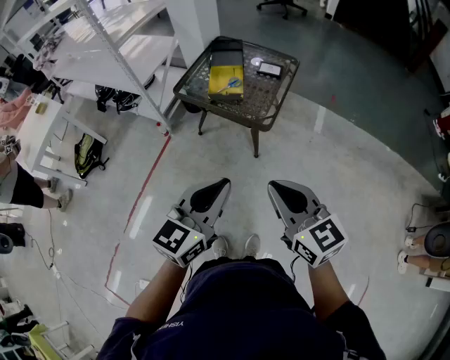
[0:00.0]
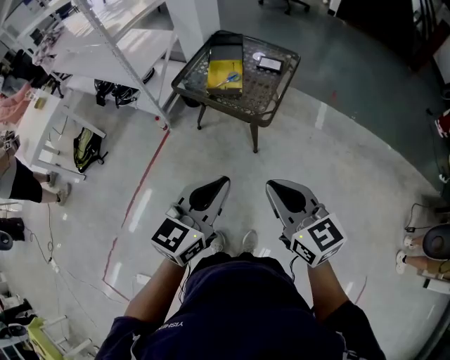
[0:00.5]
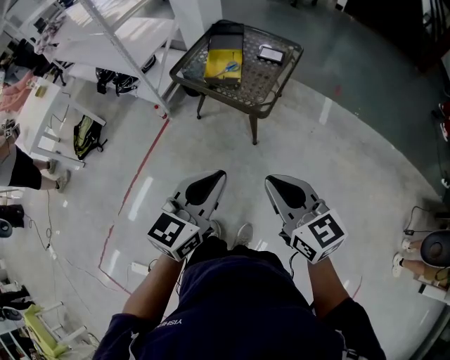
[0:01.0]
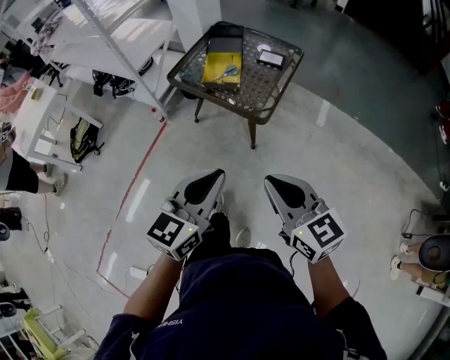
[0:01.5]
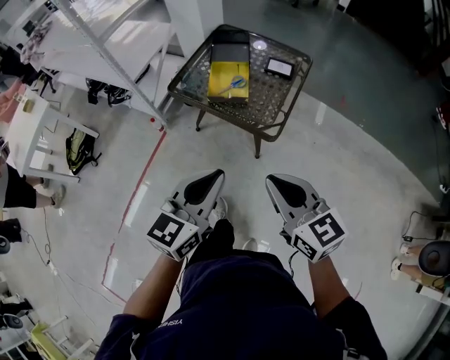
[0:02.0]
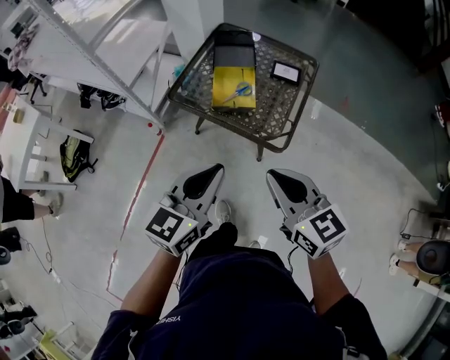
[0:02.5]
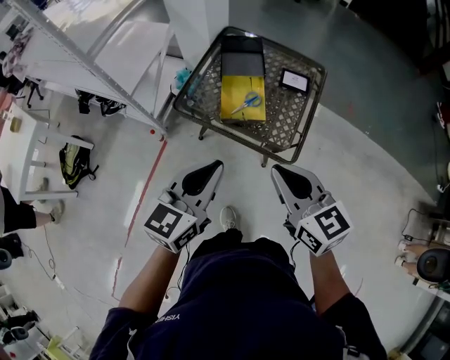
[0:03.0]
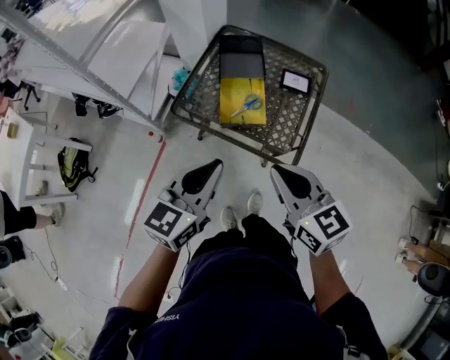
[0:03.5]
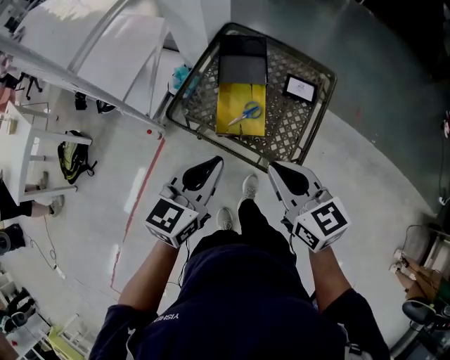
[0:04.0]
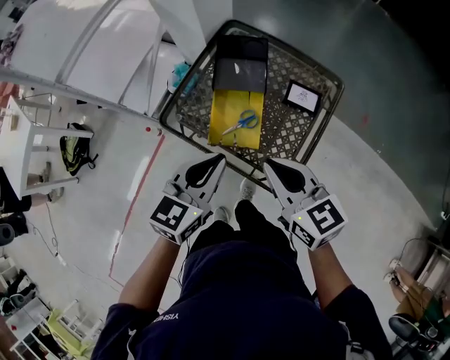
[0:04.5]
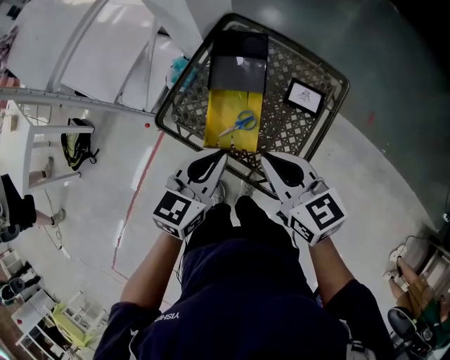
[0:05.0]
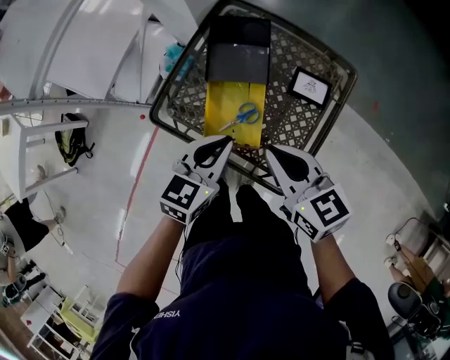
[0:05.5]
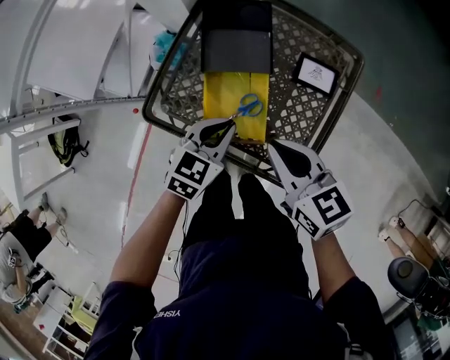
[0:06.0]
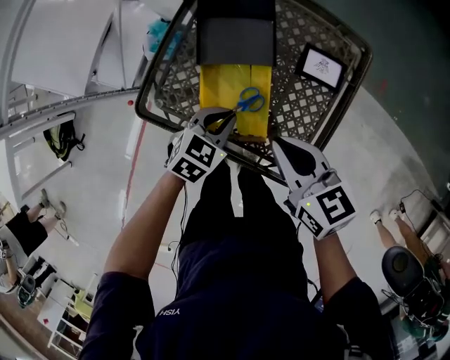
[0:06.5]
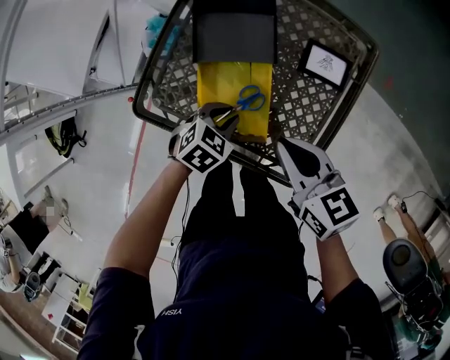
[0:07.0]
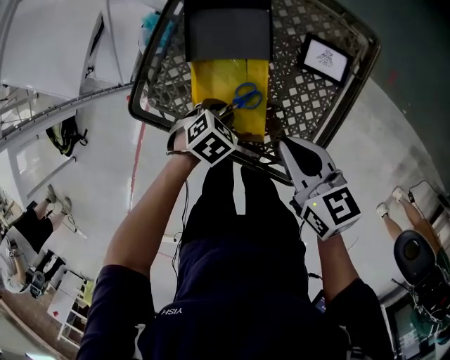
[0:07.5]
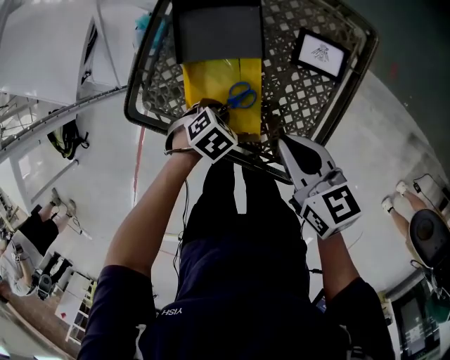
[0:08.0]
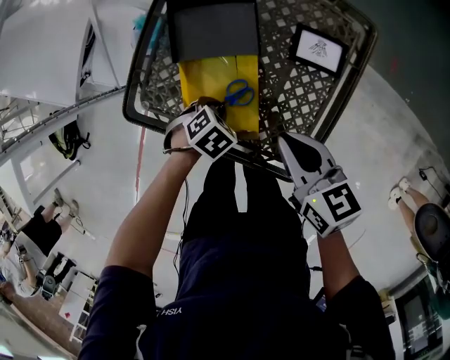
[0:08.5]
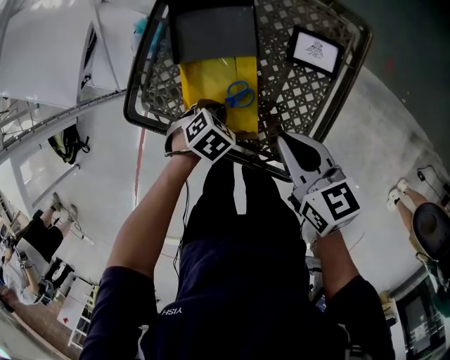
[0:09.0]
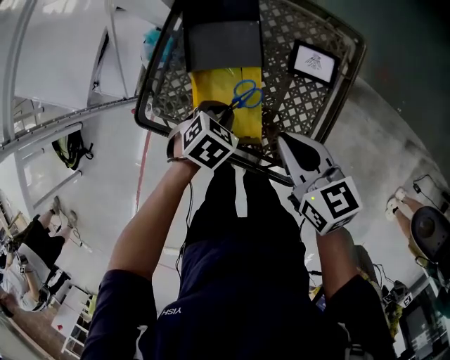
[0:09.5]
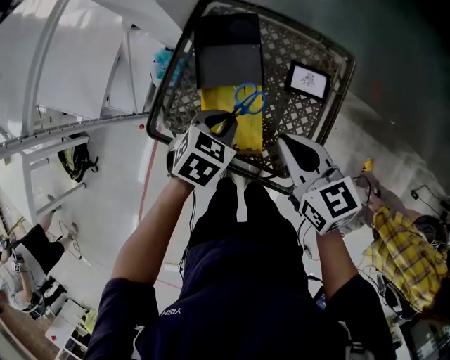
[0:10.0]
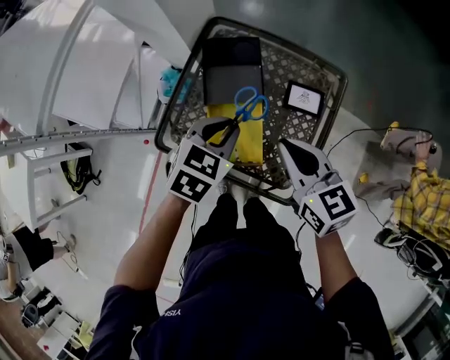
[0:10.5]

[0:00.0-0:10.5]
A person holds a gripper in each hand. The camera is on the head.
0:00.0 to 0:02.0: The two grippers go approximately 15 cm forward.
0:02.0 to 0:04.0: Both grippers move forward, roughly 30 cm.
0:04.0 to 0:06.5: The left gripper is displaced downward and forward by roughly 35 cm, and tilts its fingers some 30 degrees downward, while the right gripper shifts about 25 cm forward and downward.
0:06.5 to 0:08.5: The right gripper shifts by some 5 cm. The left gripper moves downward, about 10 cm, and angles its fingers downward, by some 30 degrees.
0:08.5 to 0:10.5: The right gripper shifts about 15 cm upward. Meanwhile the left gripper shifts about 30 cm upward, and angles its fingers upward, by about 30 degrees.

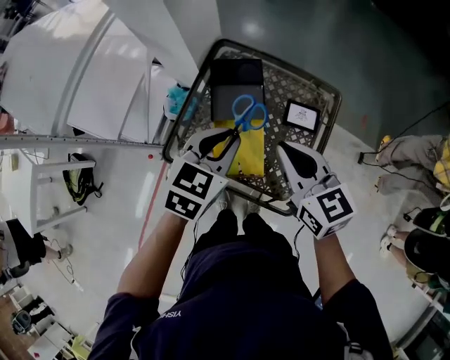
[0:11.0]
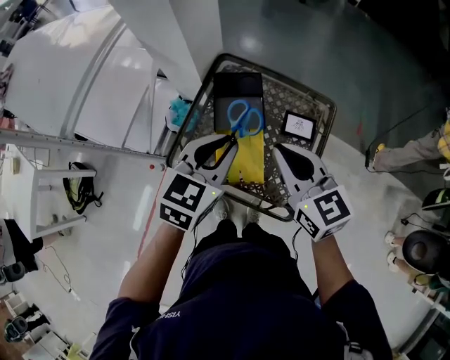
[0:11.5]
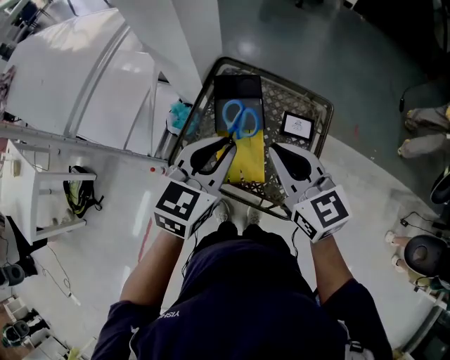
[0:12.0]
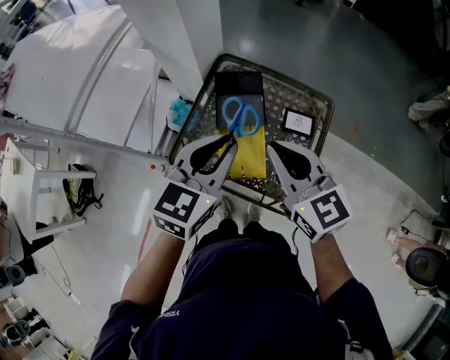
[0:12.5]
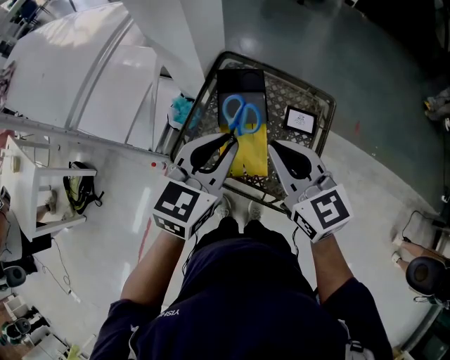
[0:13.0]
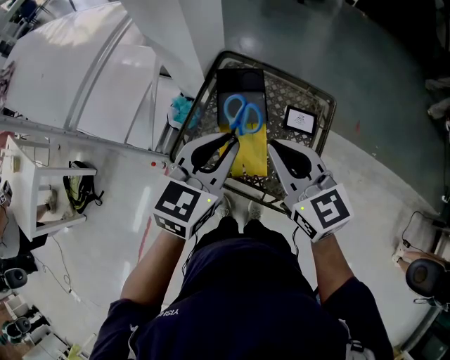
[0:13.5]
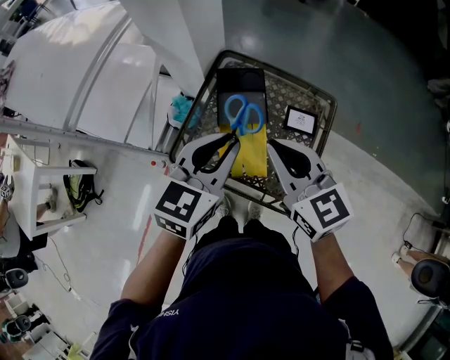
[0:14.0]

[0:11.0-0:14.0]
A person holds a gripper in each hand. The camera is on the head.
0:11.0 to 0:12.5: Both grippers travel together upward, roughly 10 cm.
0:12.5 to 0:14.0: The two grippers keep their place.

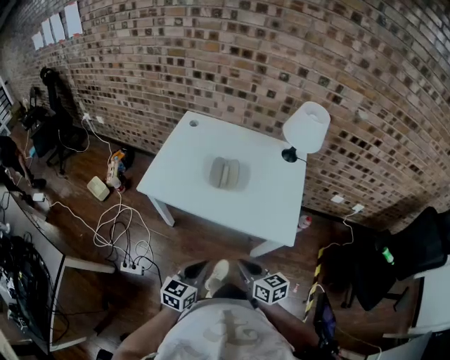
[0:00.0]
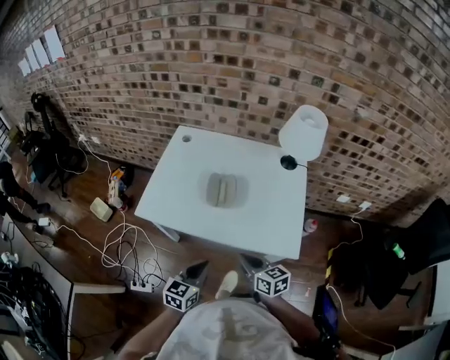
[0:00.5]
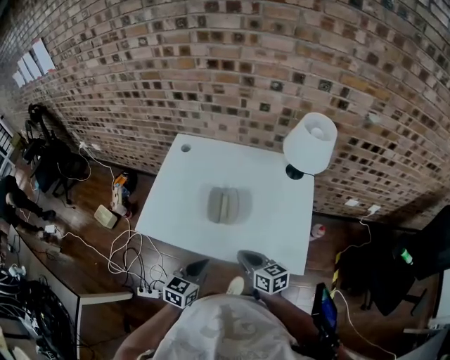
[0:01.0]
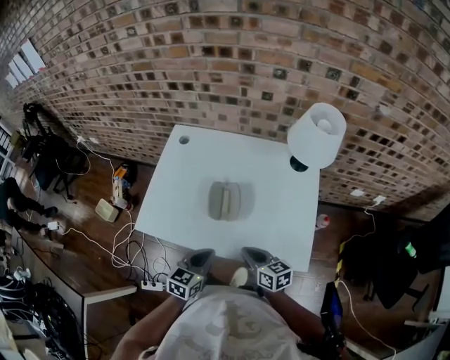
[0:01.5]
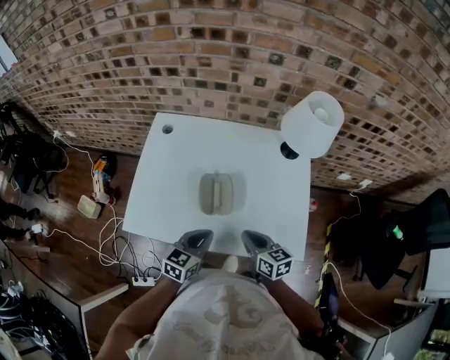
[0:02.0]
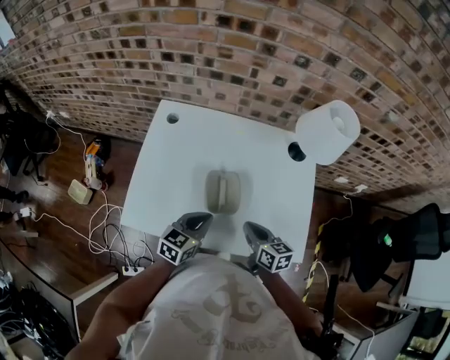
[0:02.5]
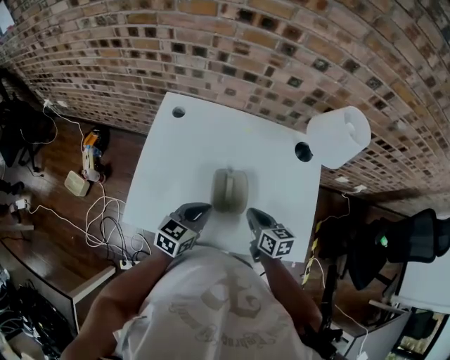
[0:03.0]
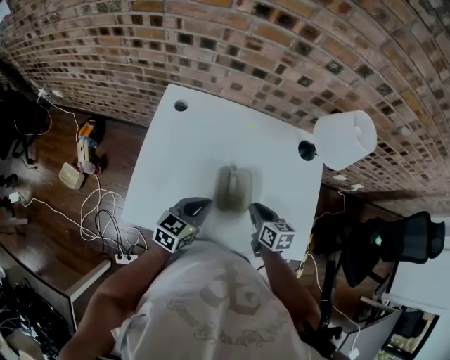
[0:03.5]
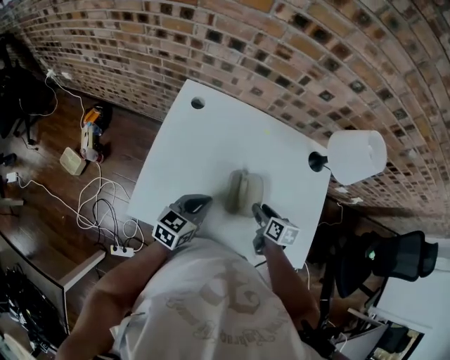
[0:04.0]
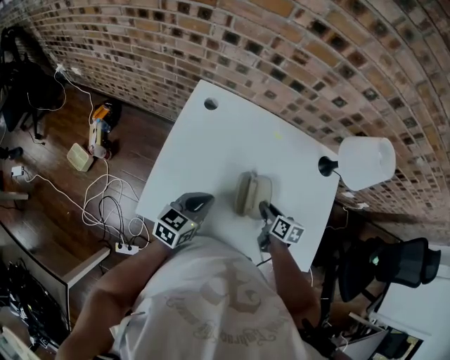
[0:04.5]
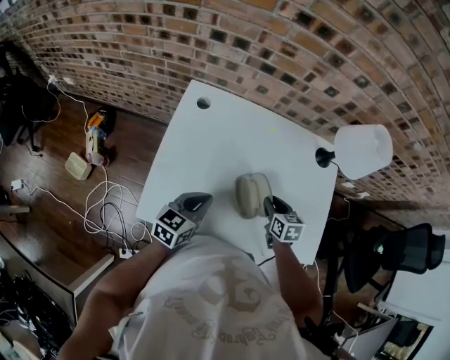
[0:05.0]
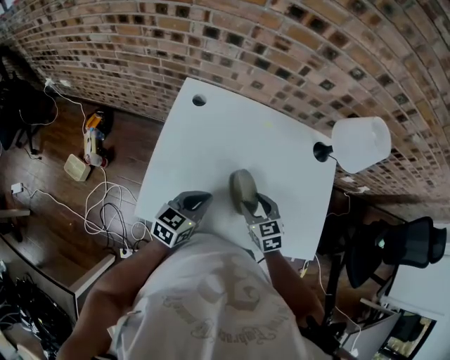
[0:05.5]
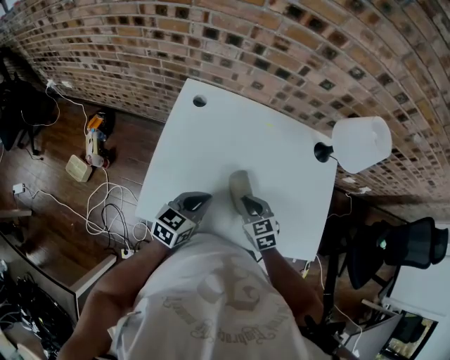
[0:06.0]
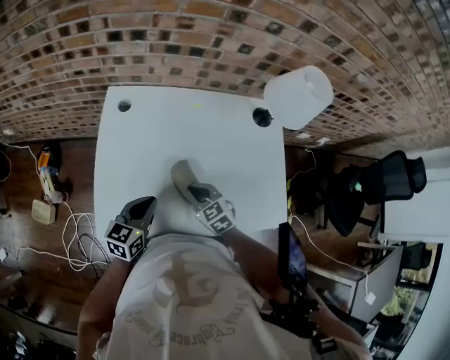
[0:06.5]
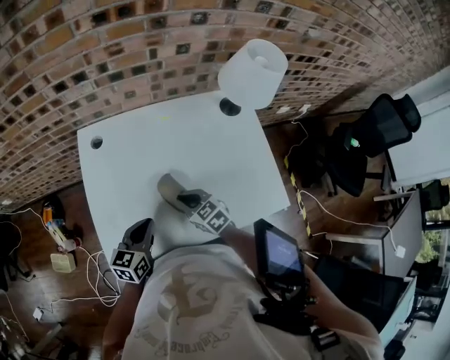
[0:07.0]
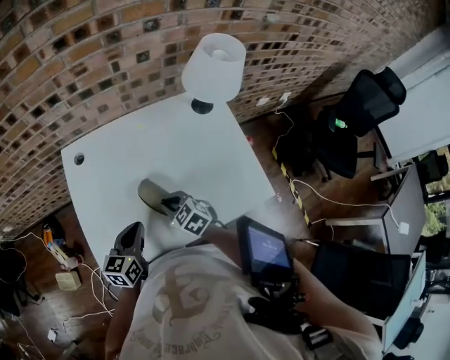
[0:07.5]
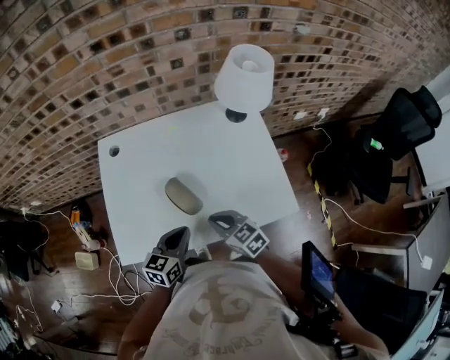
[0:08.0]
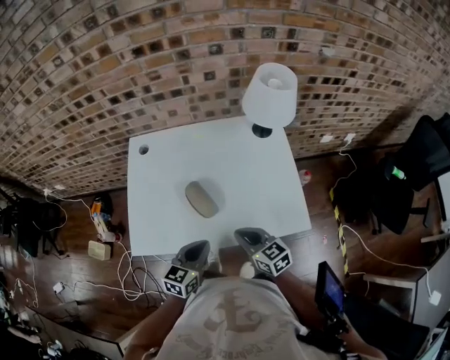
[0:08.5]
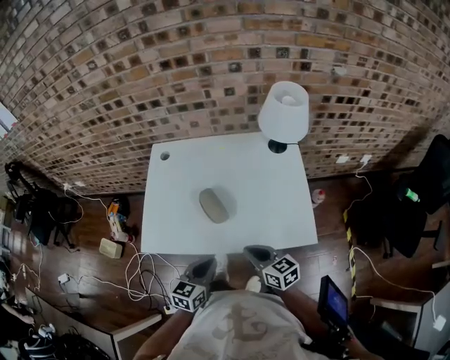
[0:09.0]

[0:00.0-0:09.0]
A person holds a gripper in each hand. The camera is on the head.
0:00.0 to 0:02.0: Both grippers move forward, some 25 cm.
0:02.0 to 0:04.5: The right gripper moves forward, downward and to the left, some 20 cm, swivels roughly 20 degrees, and opens. The left gripper travels to the left and forward by roughly 20 cm.
0:04.5 to 0:07.0: The right gripper heads to the left, covering approximately 10 cm, rotates approximately 30 degrees, and closes its fingers.
0:07.0 to 0:09.0: The right gripper moves backward, to the right and upward, about 25 cm, and swivels about 20 degrees, while the left gripper shifts approximately 20 cm backward and to the right.

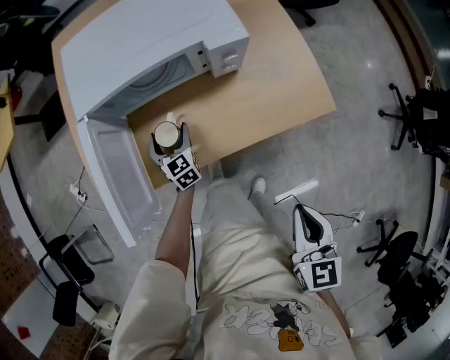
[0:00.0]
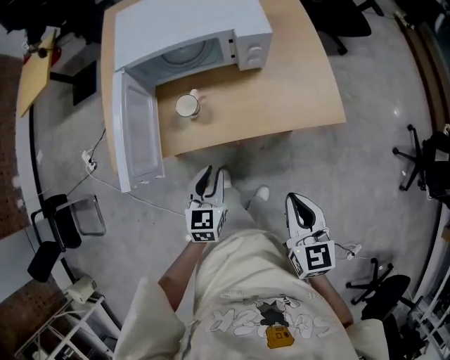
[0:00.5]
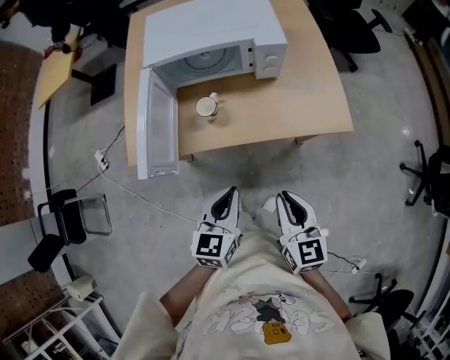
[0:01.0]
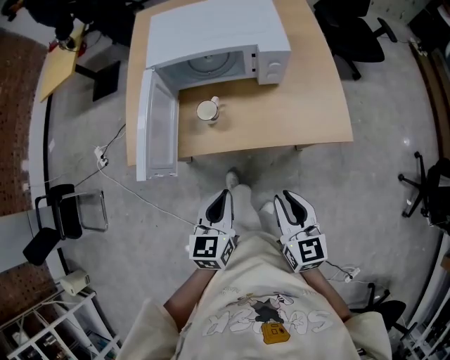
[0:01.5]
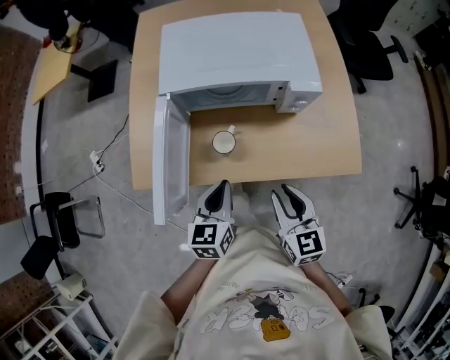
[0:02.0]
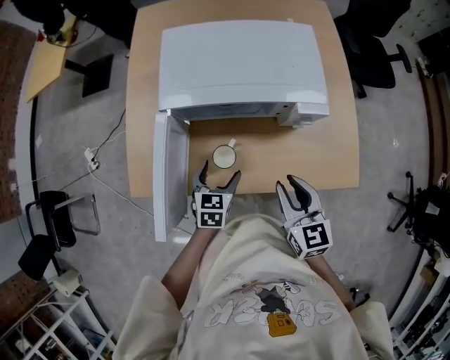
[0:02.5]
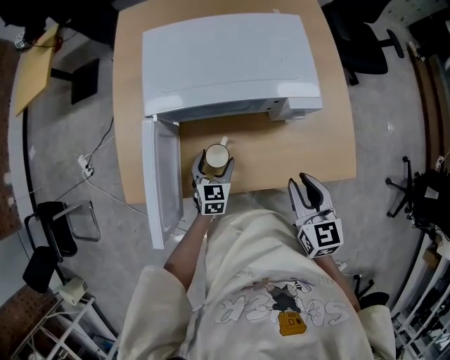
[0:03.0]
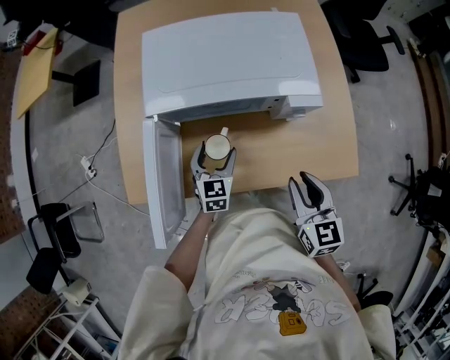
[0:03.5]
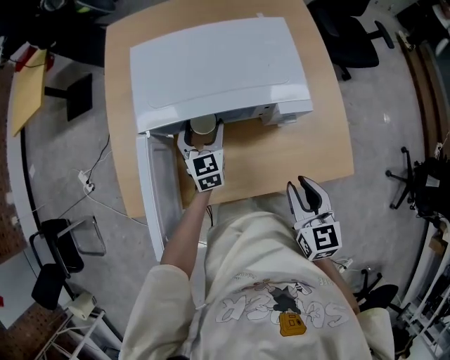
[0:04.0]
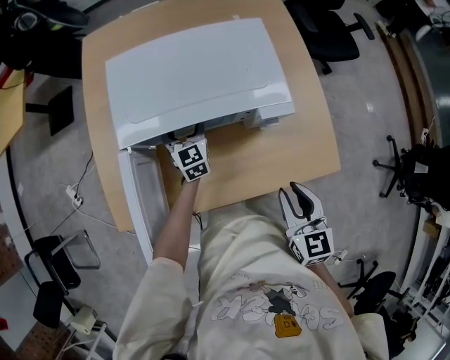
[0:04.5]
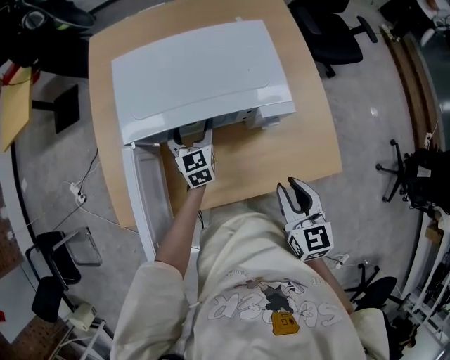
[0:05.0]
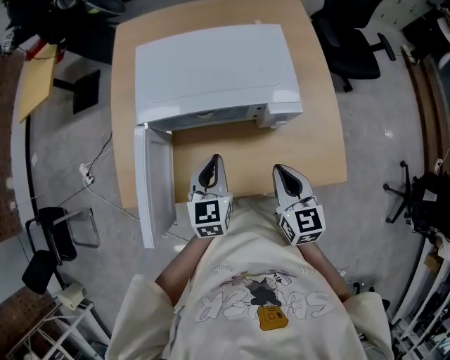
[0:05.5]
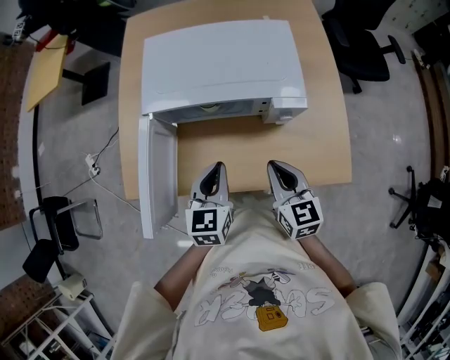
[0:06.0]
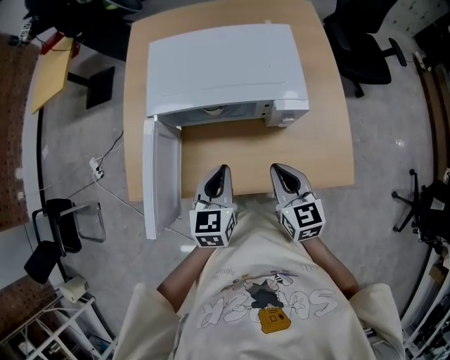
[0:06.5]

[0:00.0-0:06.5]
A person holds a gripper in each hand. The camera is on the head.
0:00.0 to 0:02.0: The left gripper is displaced upward and backward by approximately 20 cm, swivels some 20 degrees, and closes its fingers. Meanwhile the right gripper heads forward and to the left, covering approximately 15 cm, rotates some 20 degrees, and opens its fingers.
0:02.0 to 0:04.5: The left gripper moves forward, roughly 30 cm, changes its angle by about 20 degrees, and opens, while the right gripper moves forward and to the right, about 10 cm.
0:04.5 to 0:06.5: The right gripper moves roughly 5 cm, and closes up, while the left gripper shifts some 25 cm backward and upward, and closes.
